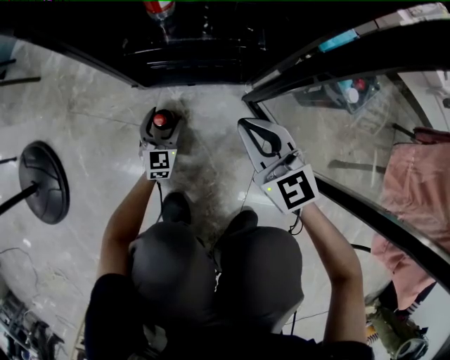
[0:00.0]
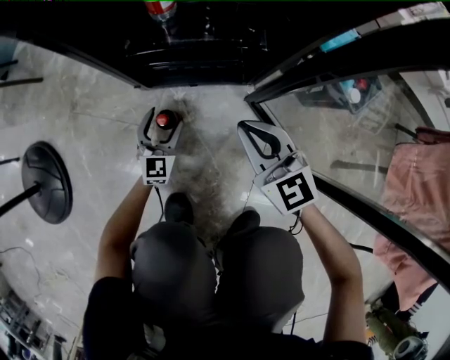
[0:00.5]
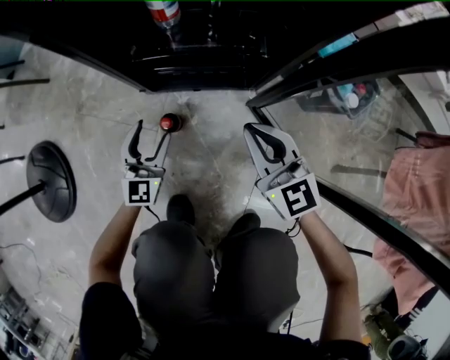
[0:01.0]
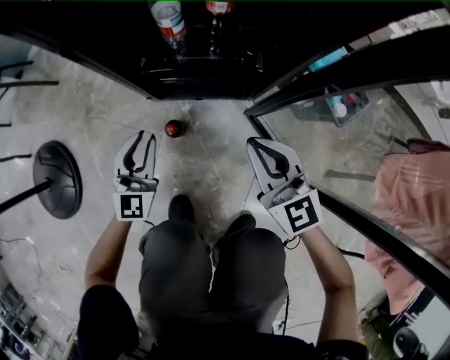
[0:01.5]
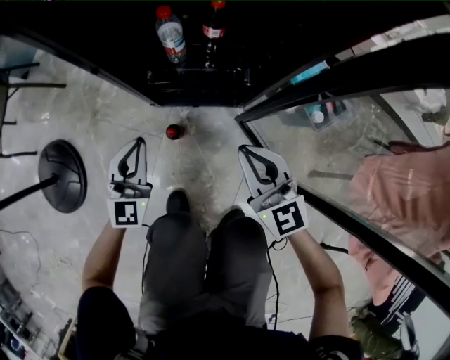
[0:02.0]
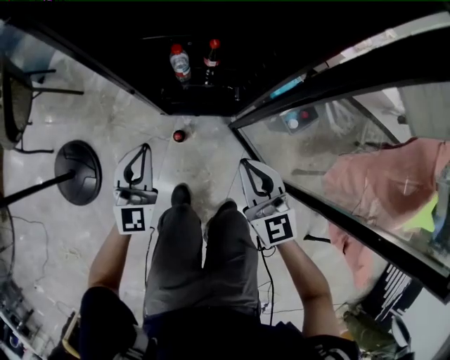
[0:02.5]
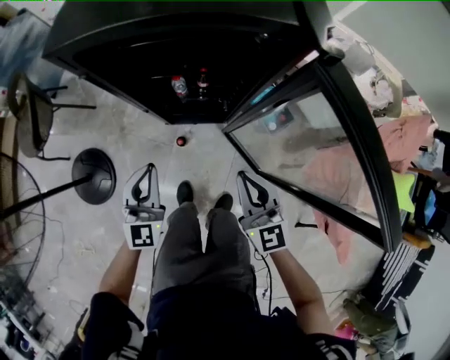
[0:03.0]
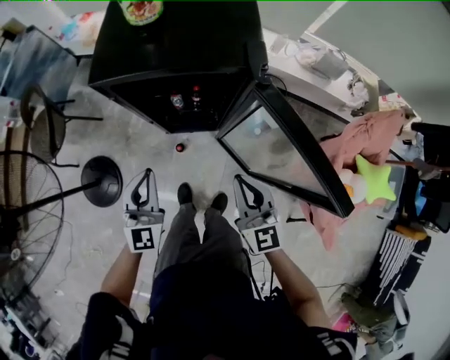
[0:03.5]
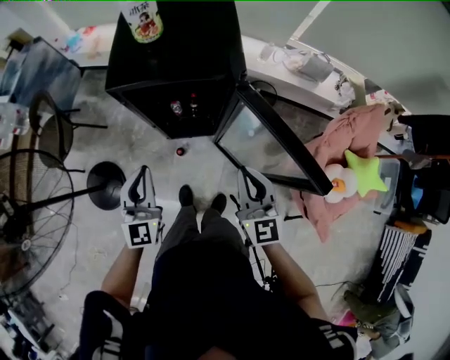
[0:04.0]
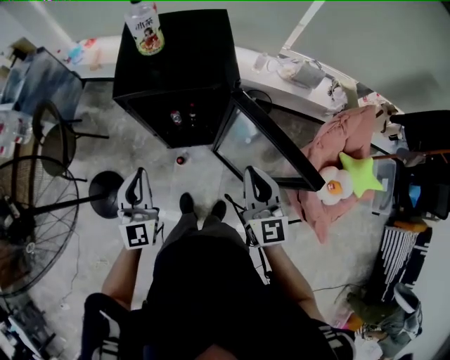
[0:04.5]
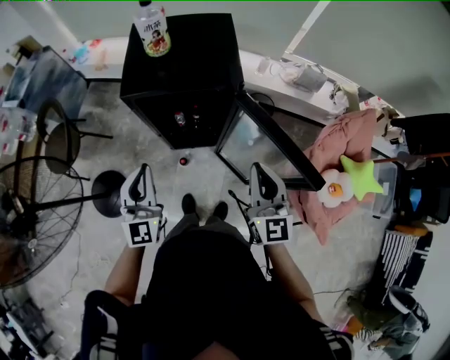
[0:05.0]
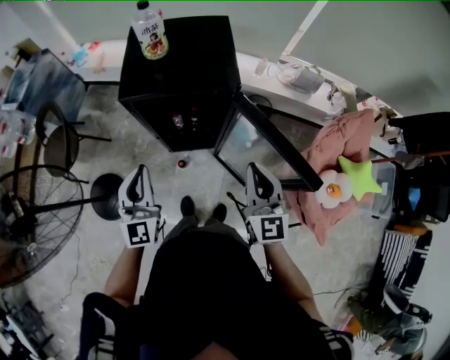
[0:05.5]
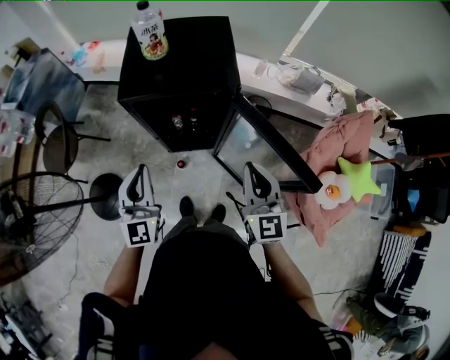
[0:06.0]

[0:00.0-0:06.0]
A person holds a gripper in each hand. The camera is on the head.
0:00.0 to 0:02.0: The left gripper is displaced upward by about 35 cm, and closes its fingers, while the right gripper travels upward by about 20 cm.
0:02.0 to 0:04.0: The two grippers go some 60 cm upward. The right gripper swivels roughly 20 degrees.
0:04.0 to 0:06.0: The grippers both shift upward by roughly 5 cm.

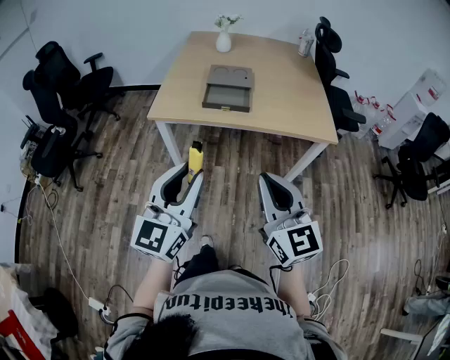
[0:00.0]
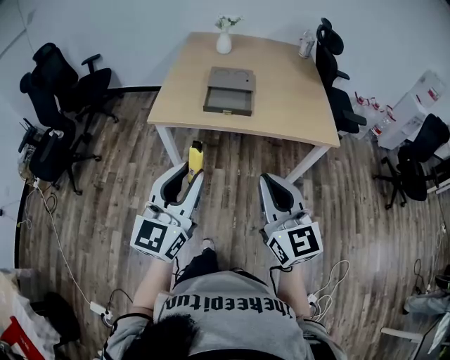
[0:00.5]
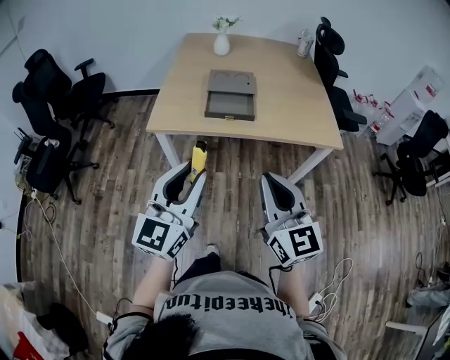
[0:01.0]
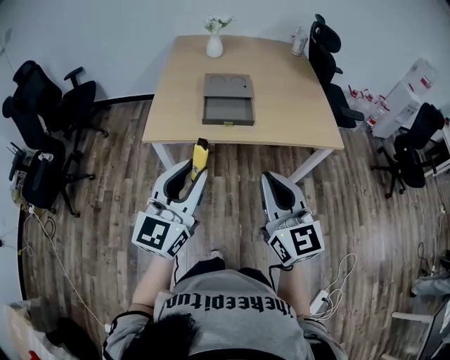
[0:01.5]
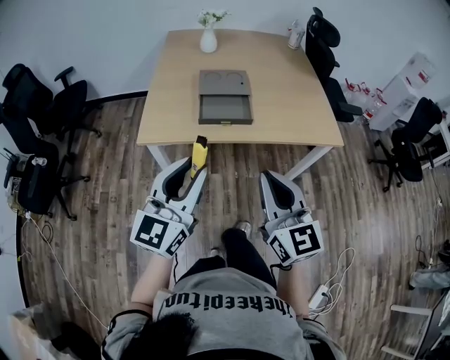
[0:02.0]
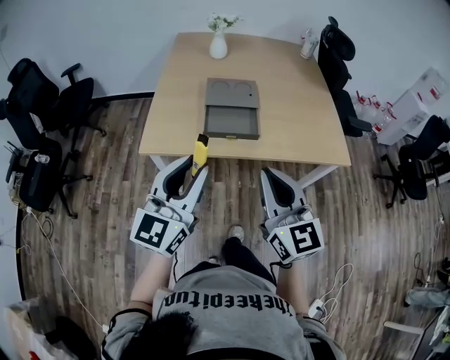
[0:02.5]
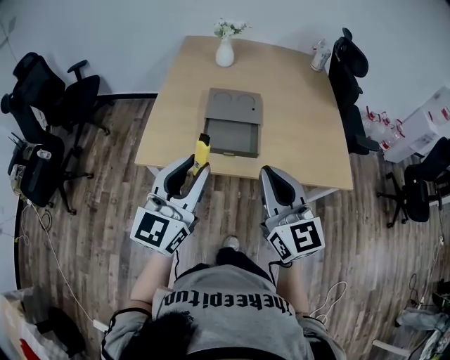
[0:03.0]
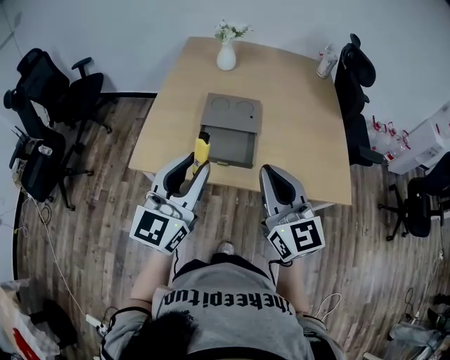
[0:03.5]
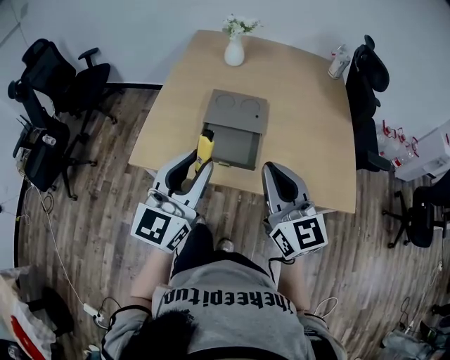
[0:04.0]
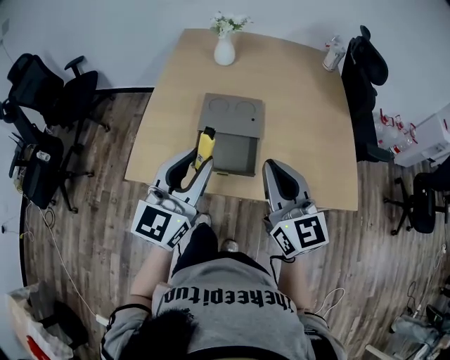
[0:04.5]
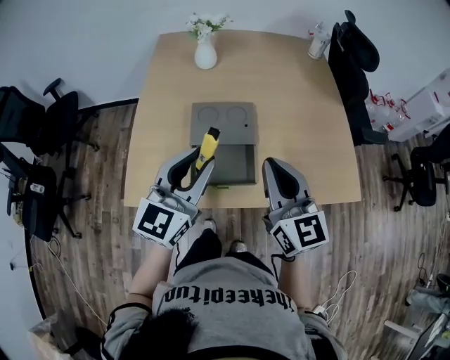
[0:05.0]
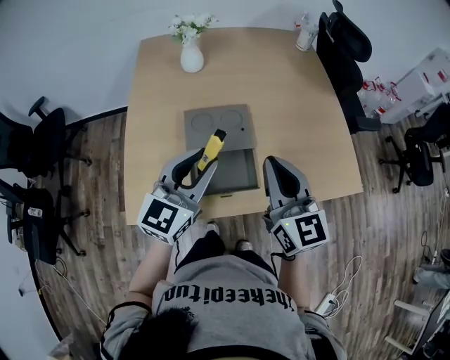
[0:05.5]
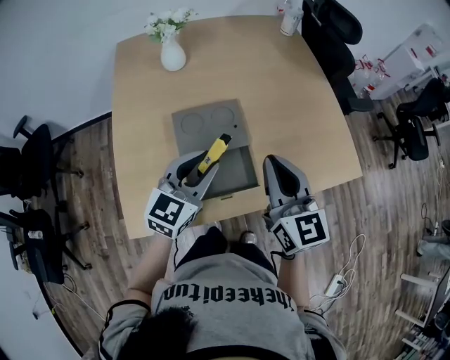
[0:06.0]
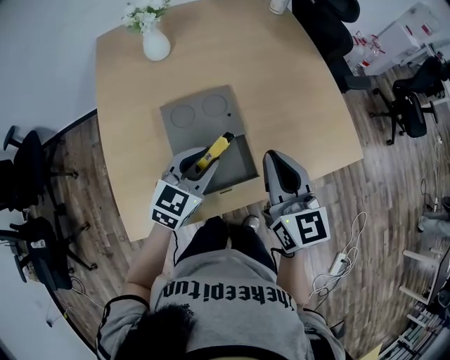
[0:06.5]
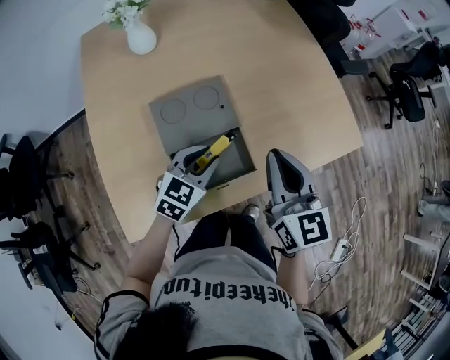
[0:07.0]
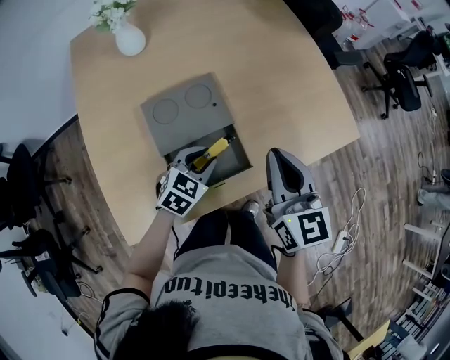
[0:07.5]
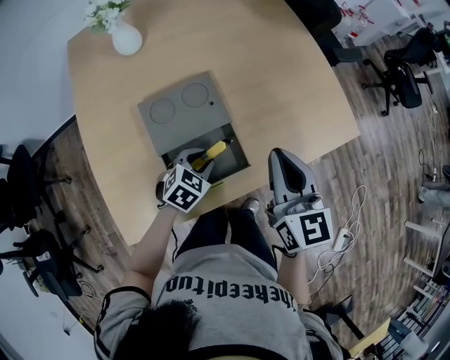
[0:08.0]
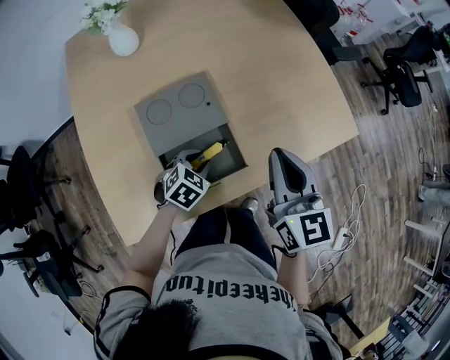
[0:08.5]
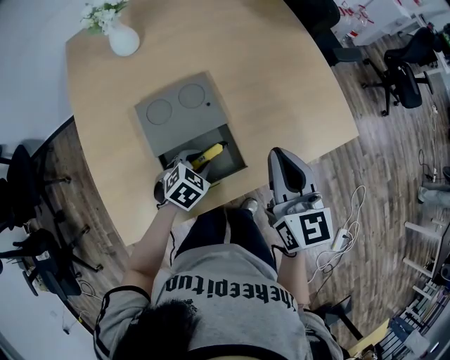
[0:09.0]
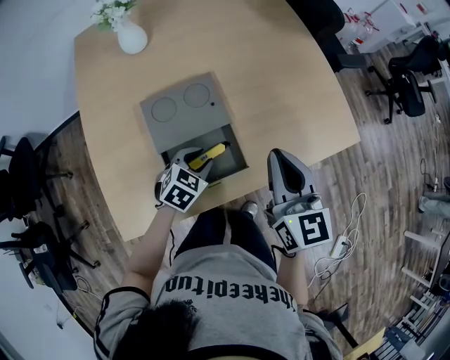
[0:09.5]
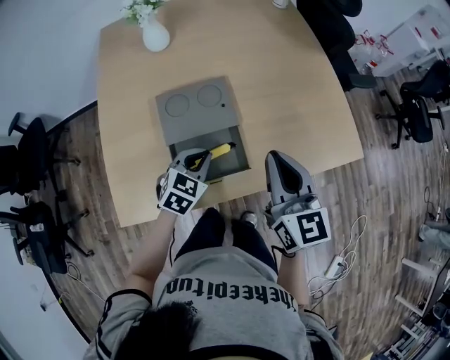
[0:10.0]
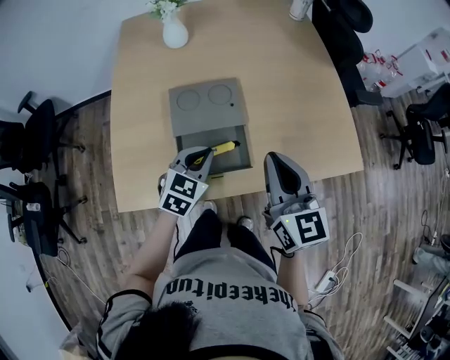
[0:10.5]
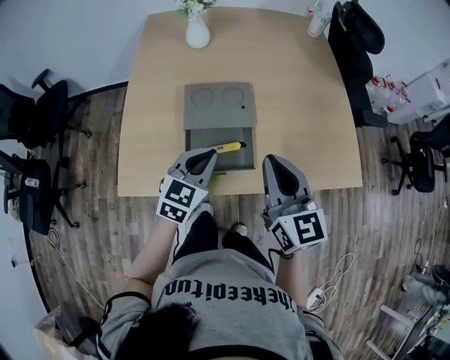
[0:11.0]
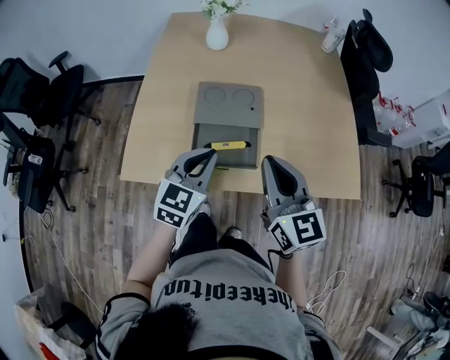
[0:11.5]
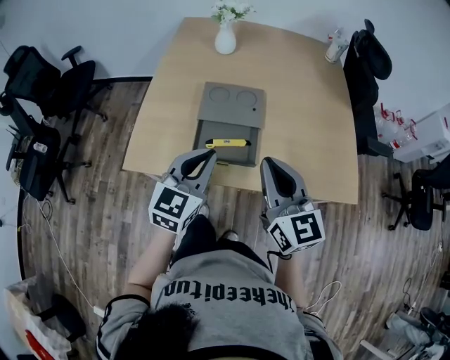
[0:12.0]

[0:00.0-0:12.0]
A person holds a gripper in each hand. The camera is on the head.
0:00.0 to 0:02.0: Both grippers travel together forward and to the left, about 15 cm.
0:02.0 to 0:04.0: The grippers both shift forward by approximately 20 cm.
0:04.0 to 0:06.0: The right gripper changes place by about 15 cm, and rotates roughly 30 degrees. The left gripper moves approximately 25 cm, and rotates about 40 degrees.
0:06.0 to 0:08.0: The left gripper travels downward by about 20 cm, and angles its fingers downward, by about 40 degrees; the right gripper changes place by approximately 5 cm.
0:08.0 to 0:10.0: The left gripper heads upward, covering approximately 5 cm, and closes its fingers.
0:10.0 to 0:12.0: The right gripper changes place by about 10 cm, and turns by roughly 30 degrees; the left gripper shifts some 15 cm upward, and changes its angle by some 40 degrees.

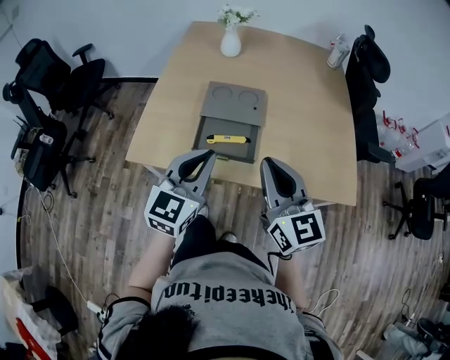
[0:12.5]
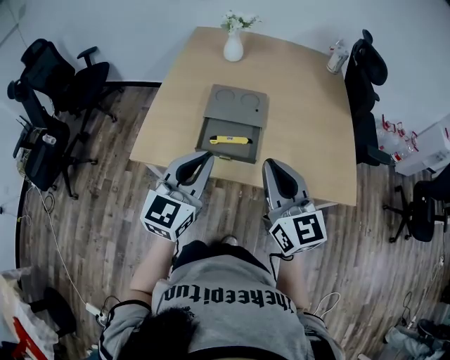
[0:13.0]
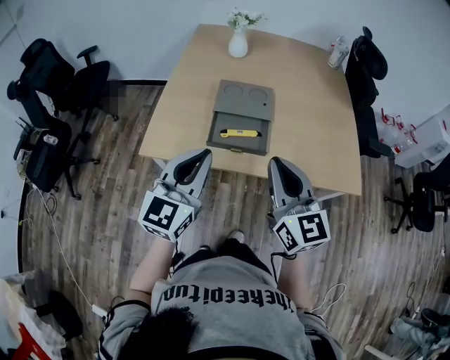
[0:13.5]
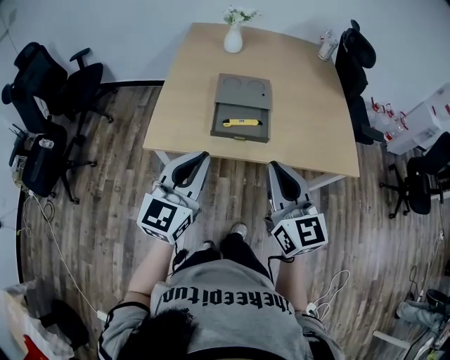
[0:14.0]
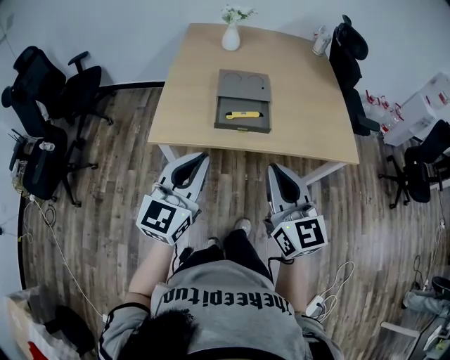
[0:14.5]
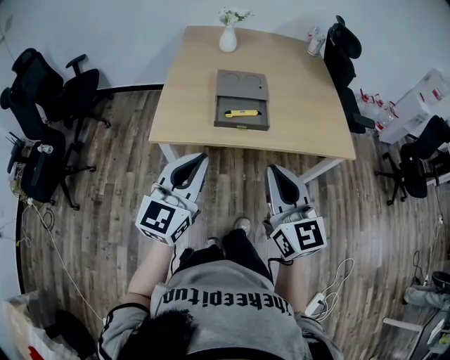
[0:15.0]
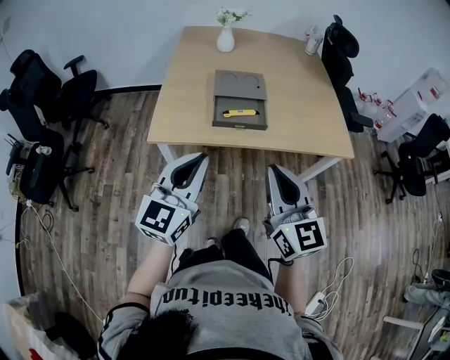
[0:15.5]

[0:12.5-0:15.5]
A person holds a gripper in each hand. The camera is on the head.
0:12.5 to 0:14.0: Both grippers move backward and to the left, approximately 15 cm.
0:14.0 to 0:15.5: Both grippers move backward, roughly 10 cm.

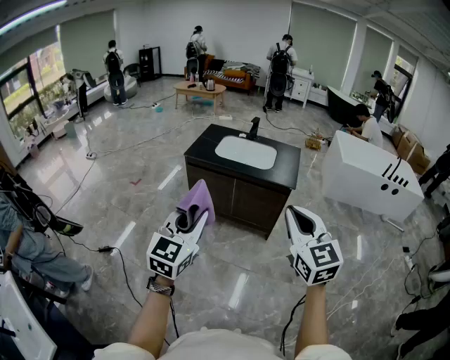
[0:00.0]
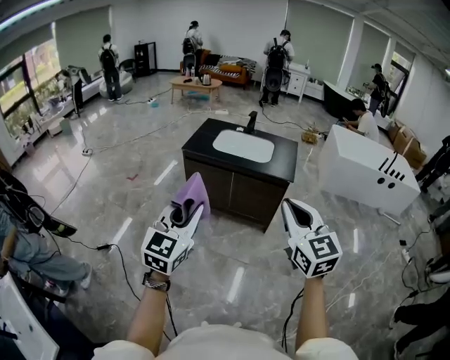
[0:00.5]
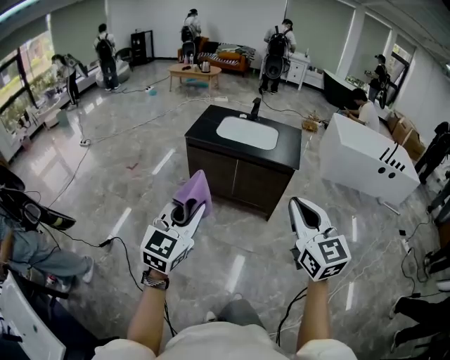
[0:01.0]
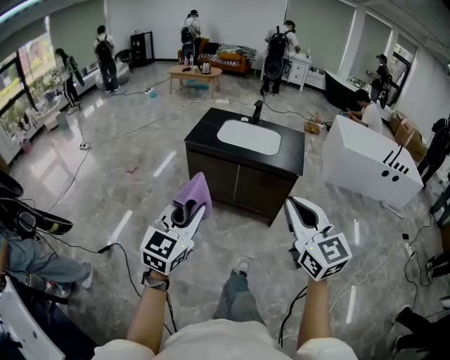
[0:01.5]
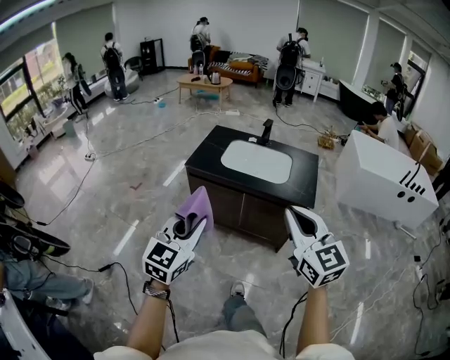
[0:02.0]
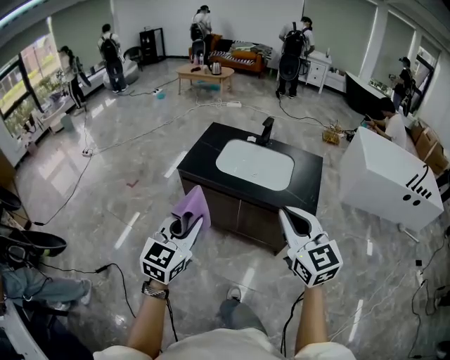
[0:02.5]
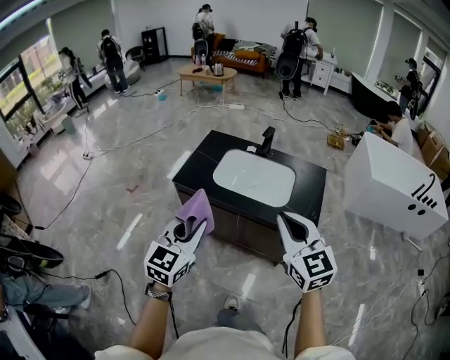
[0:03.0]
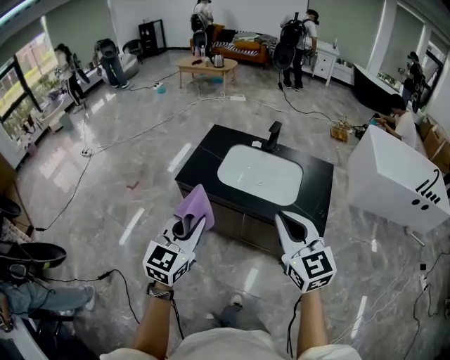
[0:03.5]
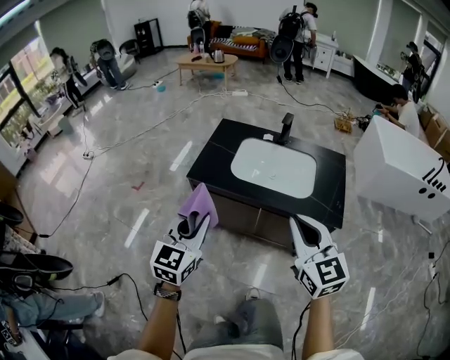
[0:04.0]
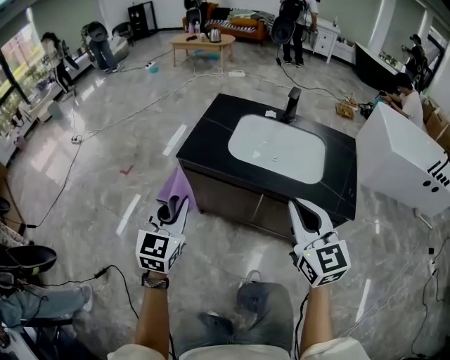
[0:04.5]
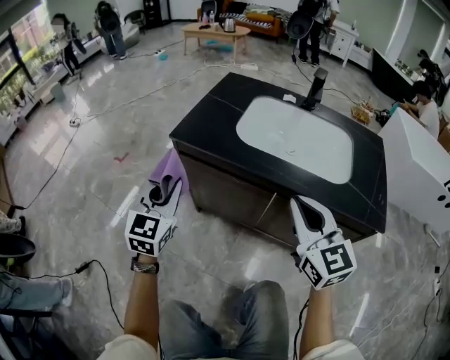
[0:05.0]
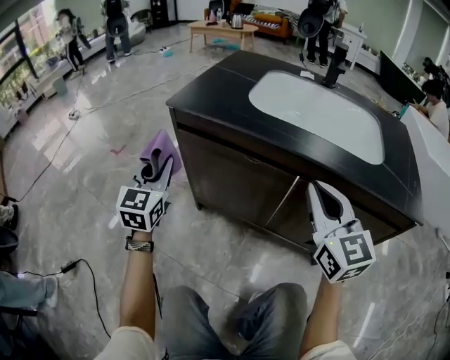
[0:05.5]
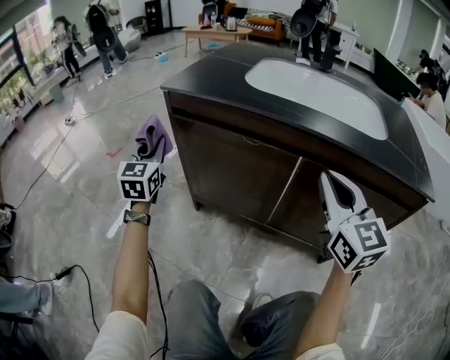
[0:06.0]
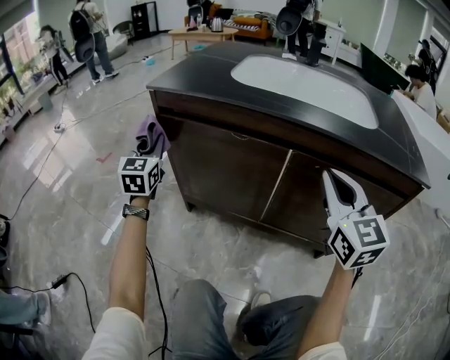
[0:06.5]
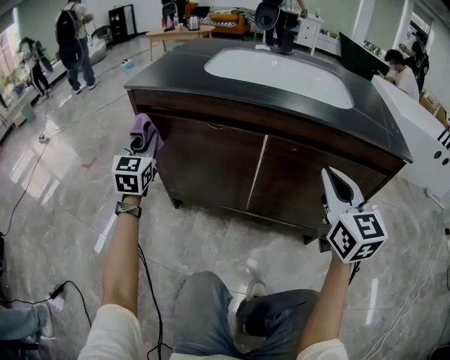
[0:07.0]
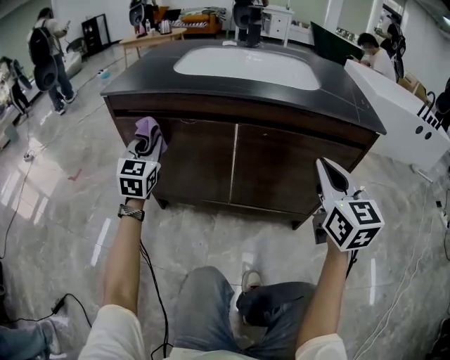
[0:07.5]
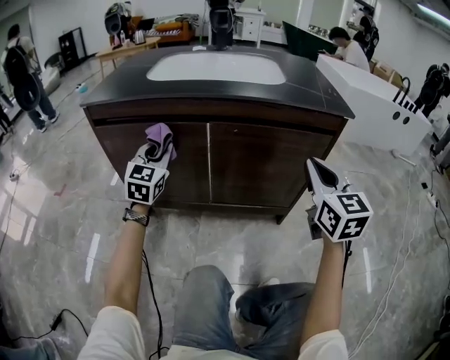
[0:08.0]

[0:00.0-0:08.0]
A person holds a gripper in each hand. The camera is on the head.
0:00.0 to 0:02.0: The grippers both shift forward by approximately 20 cm.
0:02.0 to 0:04.0: Both grippers move forward, approximately 25 cm.
0:04.0 to 0:06.0: The right gripper travels downward by roughly 40 cm, while the left gripper is displaced downward and forward by roughly 60 cm, and turns by roughly 20 degrees.
0:06.0 to 0:08.0: The left gripper shifts by some 25 cm, and turns by about 30 degrees. Meanwhile the right gripper ends up some 20 cm from where it was, and swivels roughly 30 degrees.
